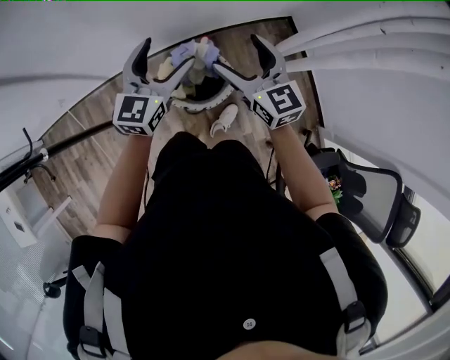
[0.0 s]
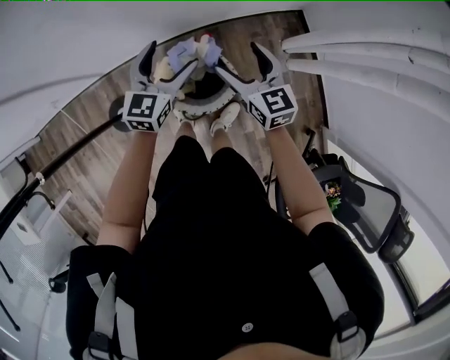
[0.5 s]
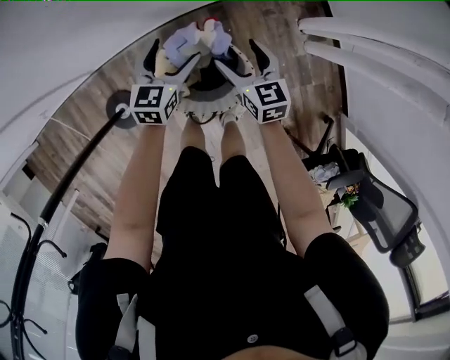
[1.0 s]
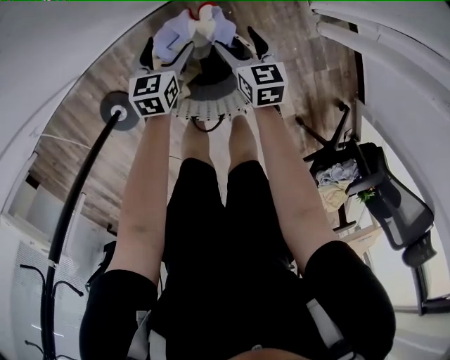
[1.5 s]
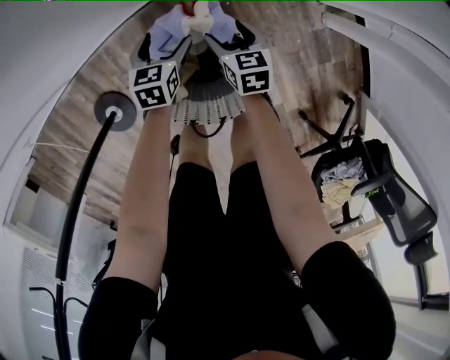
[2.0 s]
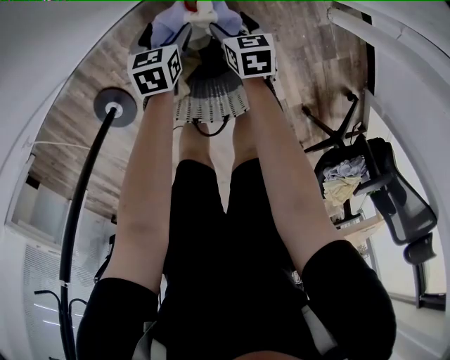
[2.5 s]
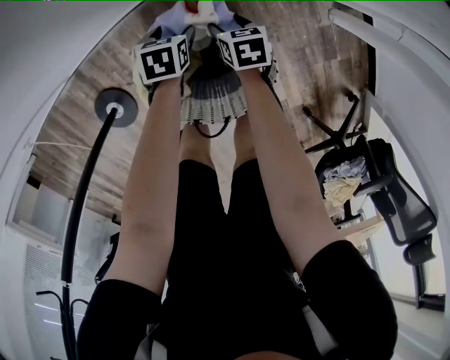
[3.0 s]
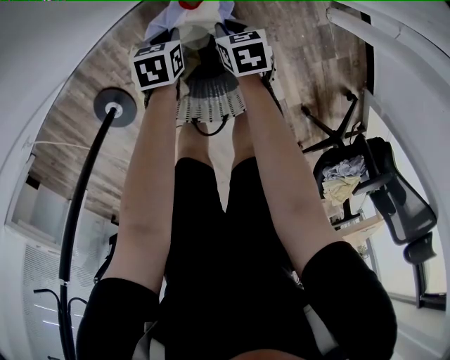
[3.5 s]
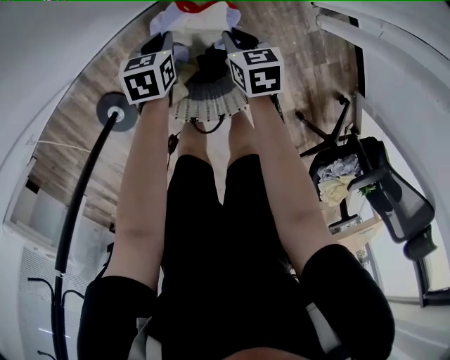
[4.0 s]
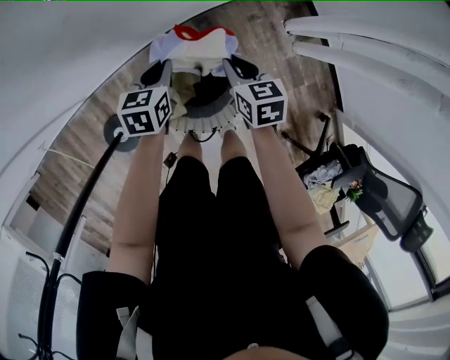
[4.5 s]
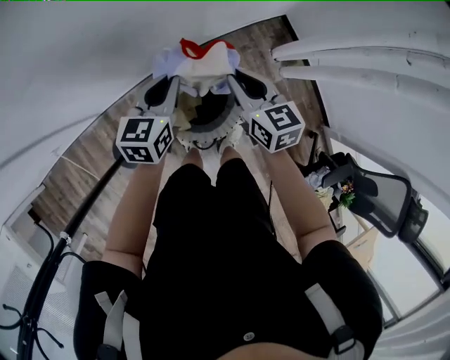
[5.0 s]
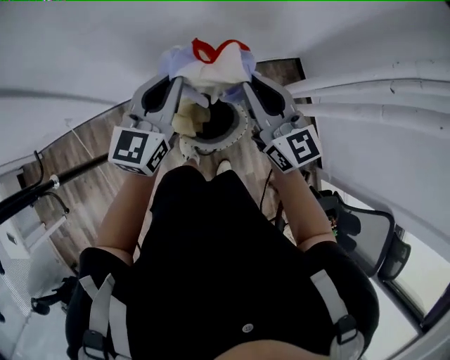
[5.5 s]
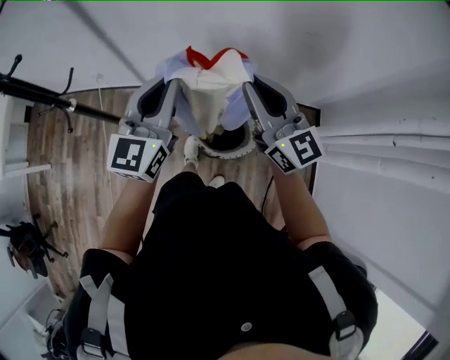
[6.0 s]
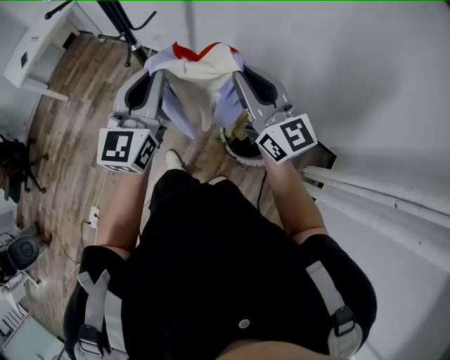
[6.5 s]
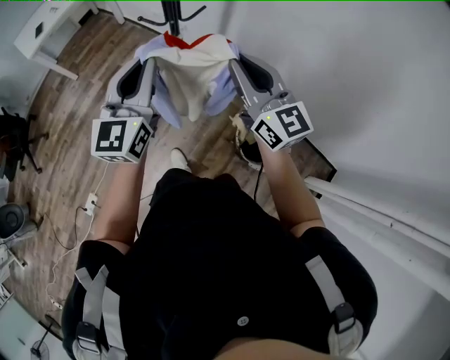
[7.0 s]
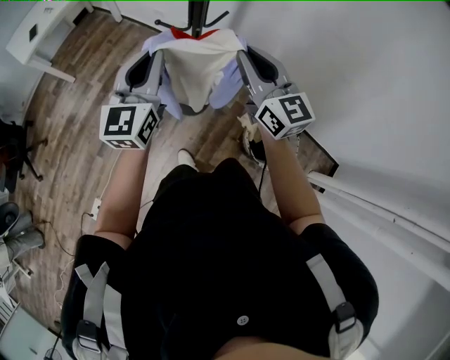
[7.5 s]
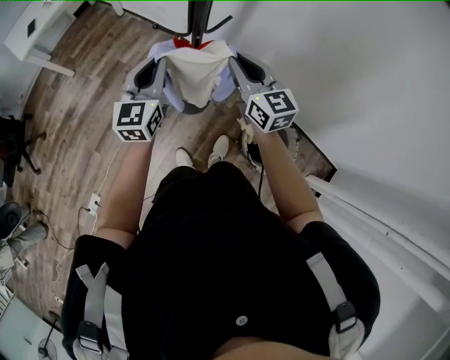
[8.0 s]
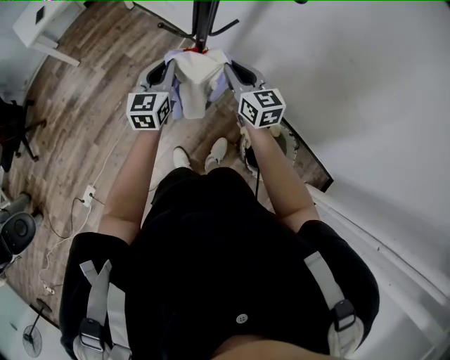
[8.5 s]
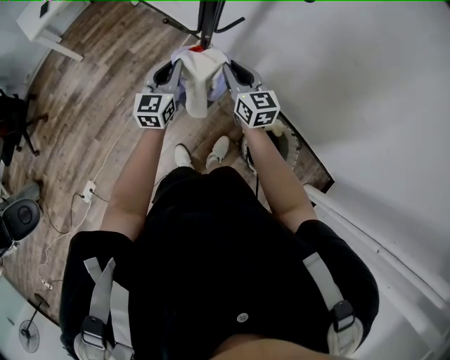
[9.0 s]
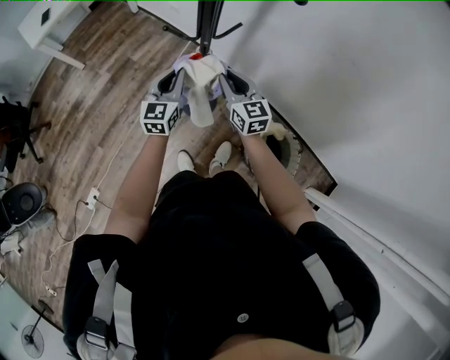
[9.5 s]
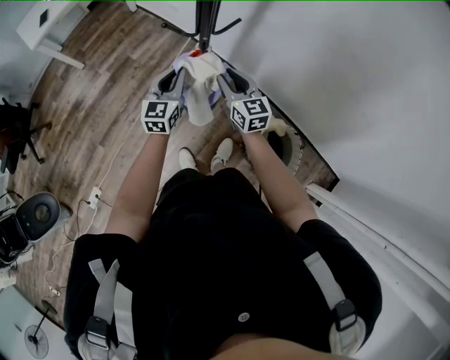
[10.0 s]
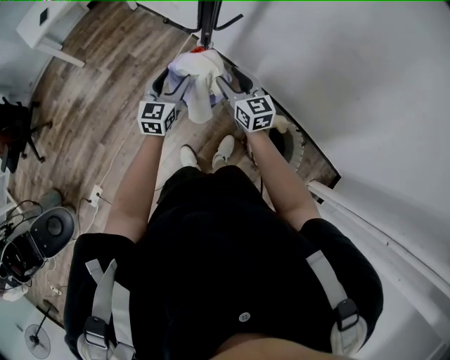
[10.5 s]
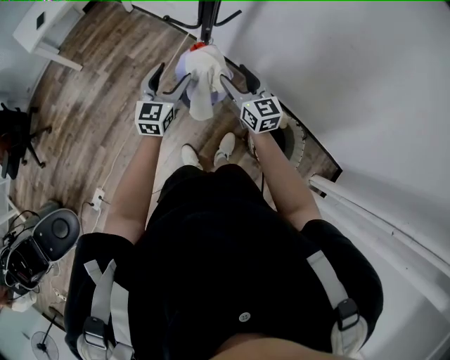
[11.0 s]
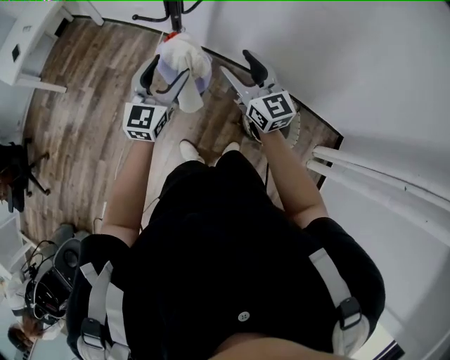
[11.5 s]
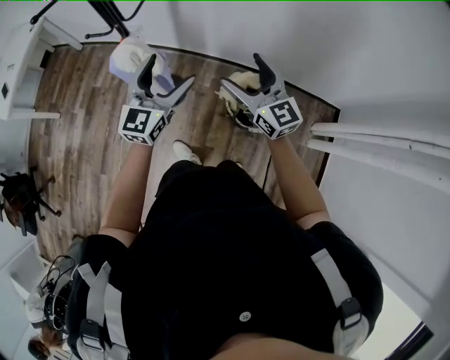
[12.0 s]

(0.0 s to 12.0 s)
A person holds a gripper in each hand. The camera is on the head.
0.0 s - 2.0 s: Both grippers move downward, some 60 cm. The left gripper points its fingers roughly 40 degrees further downward. Meanwhile the right gripper tips its fingers downward by some 40 degrees.
2.0 s - 4.0 s: The grippers both shift upward by approximately 5 cm. The left gripper closes its fingers. Meanwhile the right gripper closes up.
4.0 s - 6.0 s: Both grippers travel together upward, about 70 cm. The left gripper points its fingers roughly 60 degrees further upward. The right gripper tips its fingers upward by about 60 degrees.
6.0 s - 8.0 s: Both grippers are carried approximately 50 cm. The left gripper rotates approximately 40 degrees. The right gripper changes its angle by about 30 degrees.
8.0 s - 10.0 s: Both grippers travel together downward, some 10 cm.
10.0 s - 12.0 s: The left gripper is displaced to the right, backward and upward by about 30 cm, turns by some 30 degrees, and opens; the right gripper is displaced backward, to the right and upward by some 35 cm, changes its angle by approximately 20 degrees, and opens up.

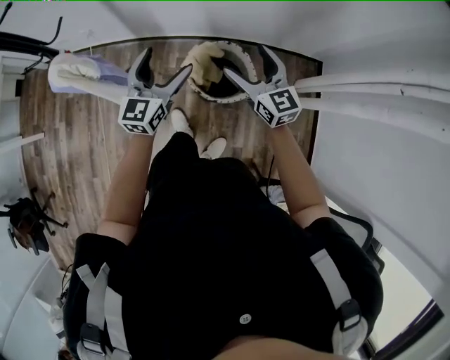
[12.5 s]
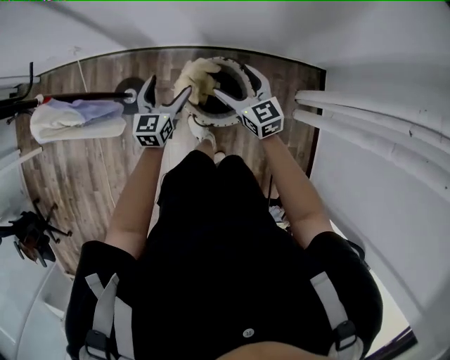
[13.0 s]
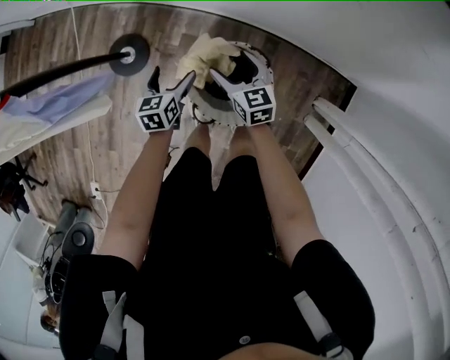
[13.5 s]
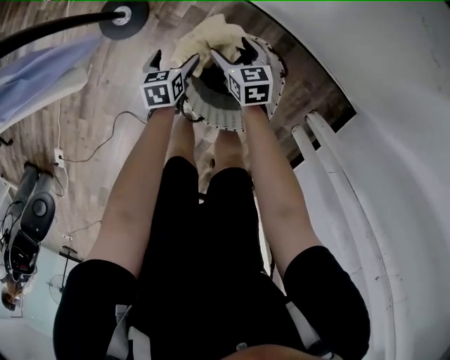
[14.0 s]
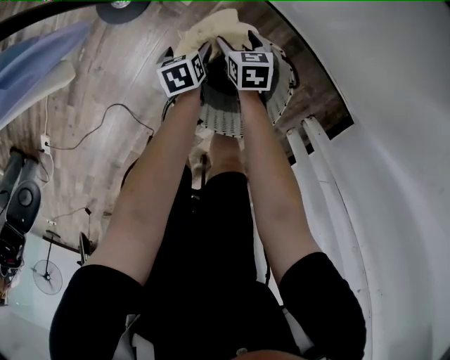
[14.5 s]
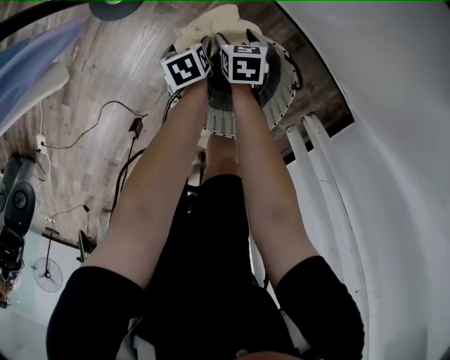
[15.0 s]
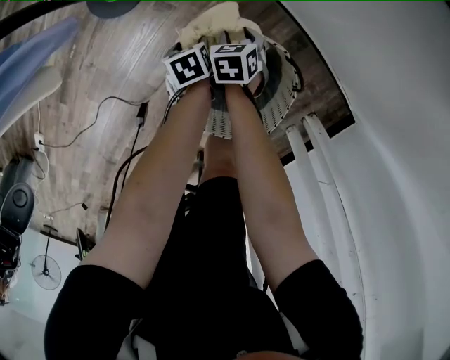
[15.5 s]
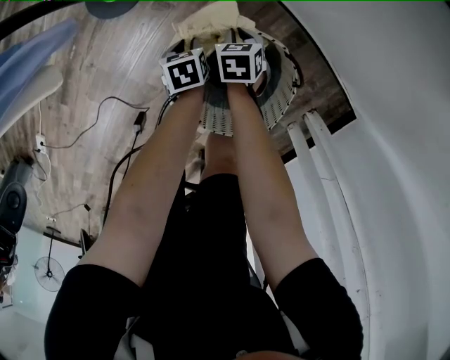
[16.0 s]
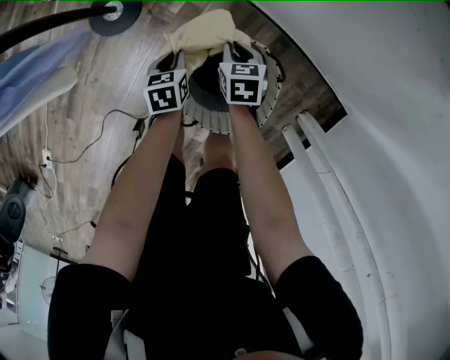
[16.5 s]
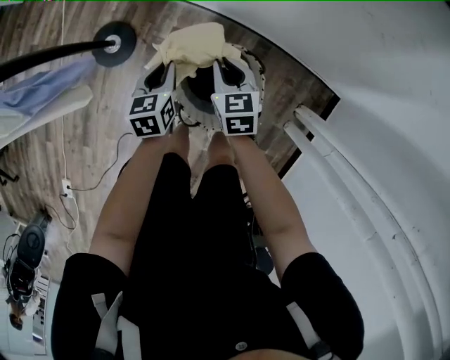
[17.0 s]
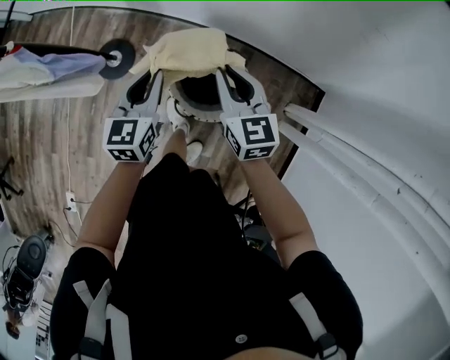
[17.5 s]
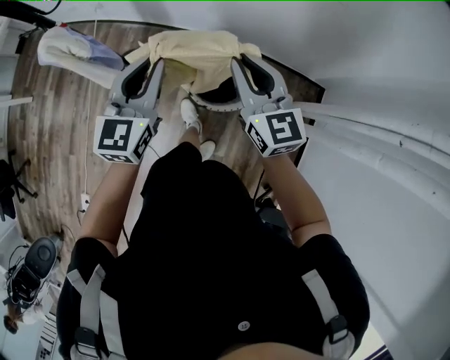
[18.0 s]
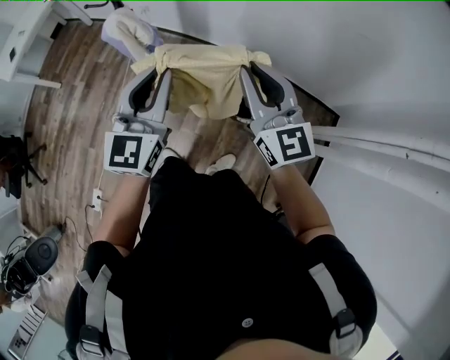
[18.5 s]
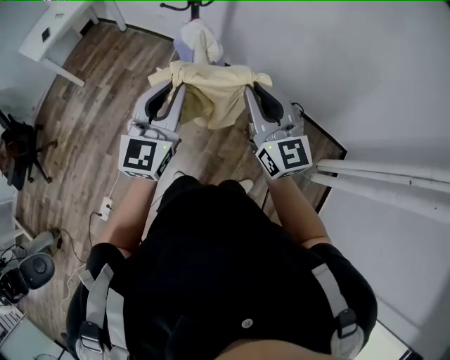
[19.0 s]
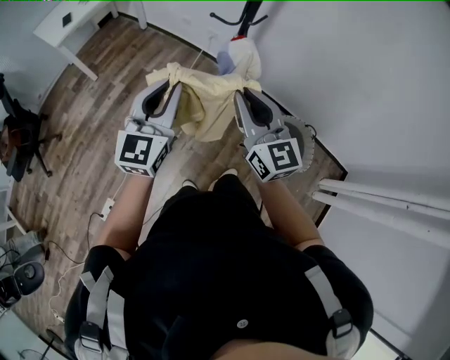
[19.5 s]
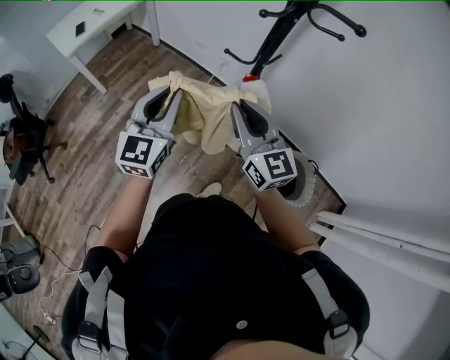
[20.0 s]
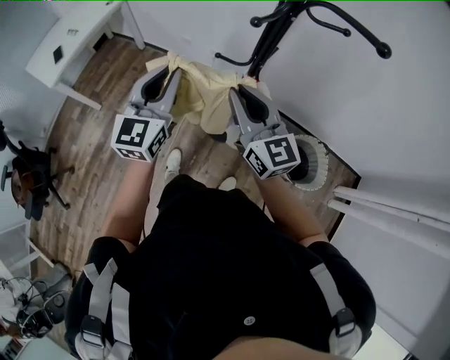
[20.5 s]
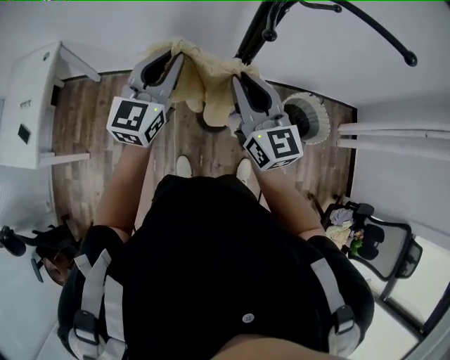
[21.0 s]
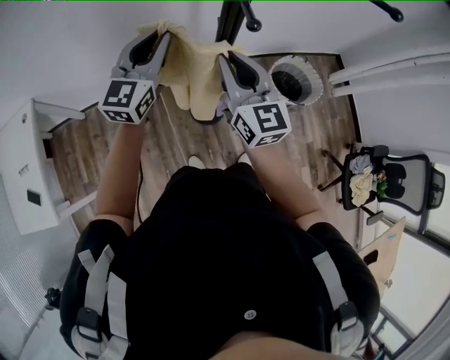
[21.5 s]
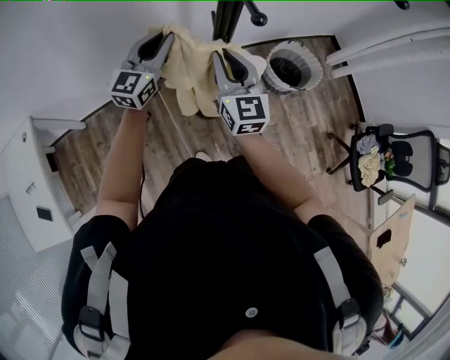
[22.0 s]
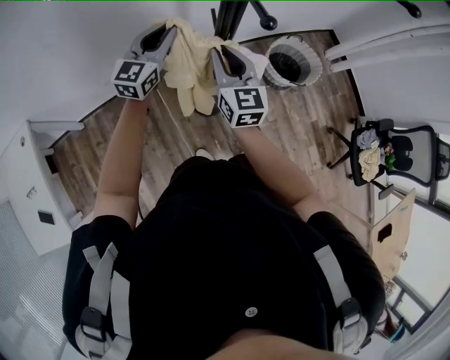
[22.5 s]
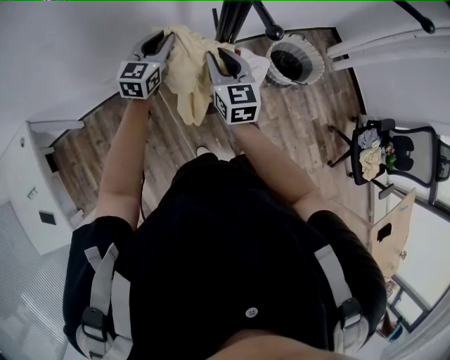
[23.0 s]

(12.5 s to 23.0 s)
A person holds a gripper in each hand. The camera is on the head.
12.5 s - 14.5 s: The grippers both shift downward by roughly 60 cm. The left gripper tilts its fingers some 60 degrees downward; the right gripper tips its fingers downward by some 50 degrees.
14.5 s - 16.5 s: The two grippers go some 5 cm upward. The left gripper closes its fingers. The right gripper closes.
16.5 s - 19.0 s: The pair of grippers is taken to the left and backward, roughly 50 cm. Both grippers travel together upward, about 70 cm. The right gripper points its fingers roughly 60 degrees further upward; the left gripper tilts its fingers some 60 degrees upward.
19.0 s - 21.0 s: The two grippers travel together, roughly 40 cm. The right gripper rotates some 30 degrees. The left gripper turns by some 30 degrees.
21.0 s - 23.0 s: The right gripper goes about 15 cm downward, and turns by some 30 degrees, while the left gripper ends up about 25 cm from where it was, and turns by approximately 30 degrees.

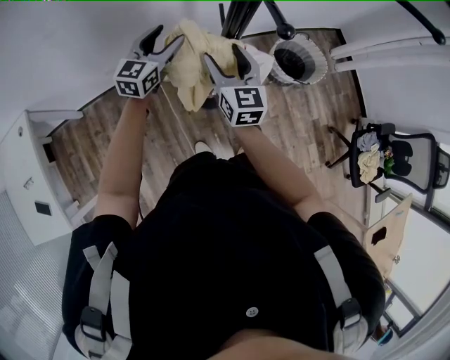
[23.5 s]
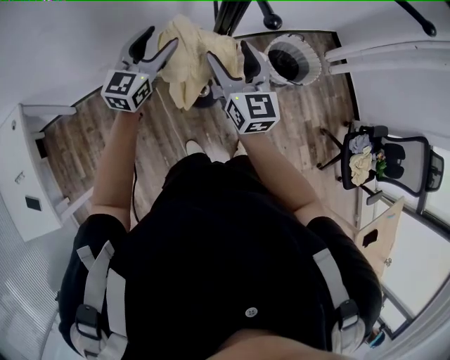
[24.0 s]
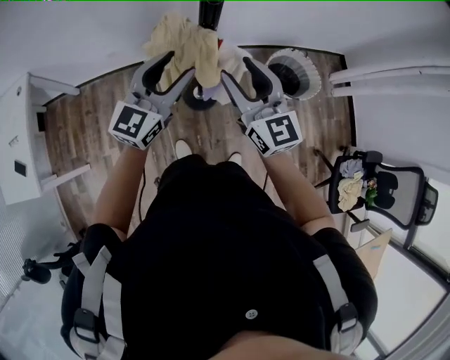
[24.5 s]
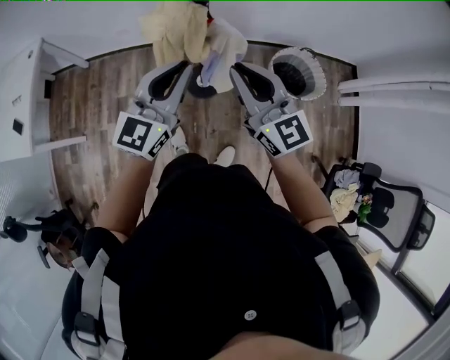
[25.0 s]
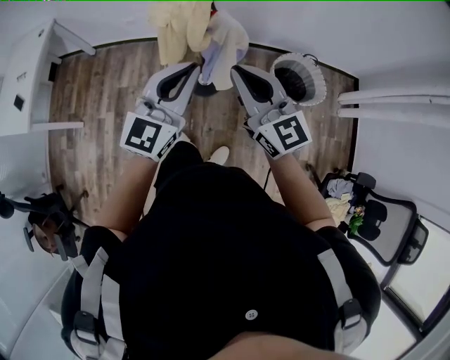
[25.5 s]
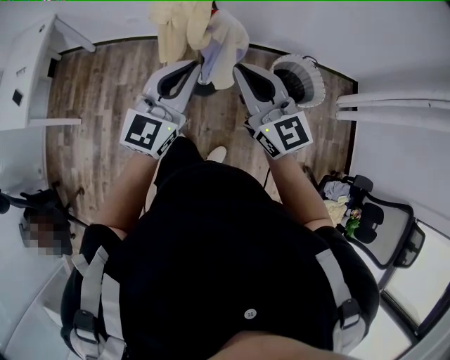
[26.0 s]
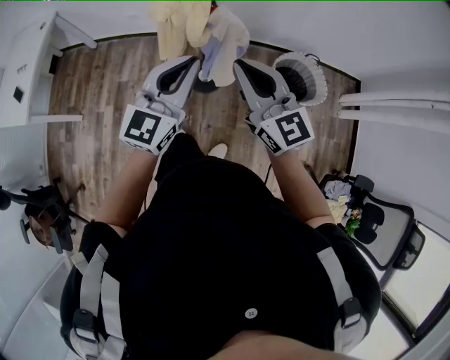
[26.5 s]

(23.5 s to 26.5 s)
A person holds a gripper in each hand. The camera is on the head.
23.5 s - 25.0 s: The right gripper shifts by approximately 30 cm, turns by roughly 40 degrees, and closes up; the left gripper changes place by roughly 35 cm, and closes.
25.0 s - 26.5 s: The left gripper travels backward by some 5 cm.

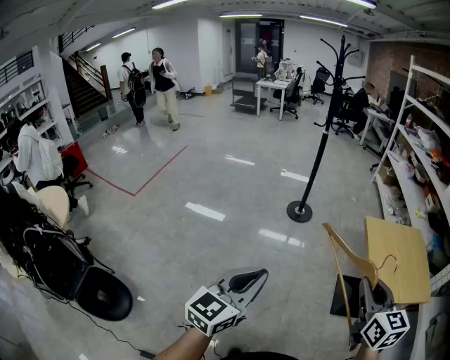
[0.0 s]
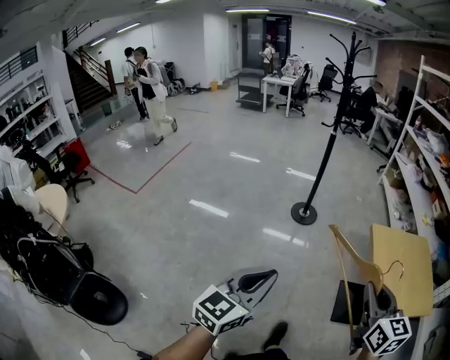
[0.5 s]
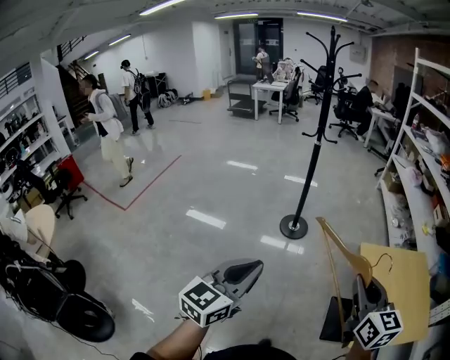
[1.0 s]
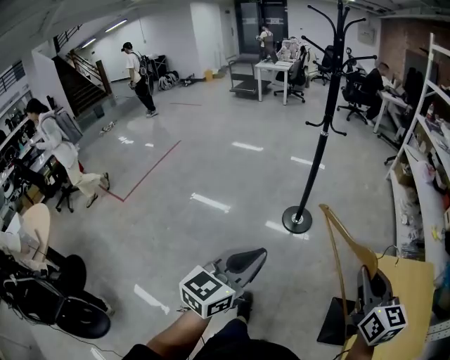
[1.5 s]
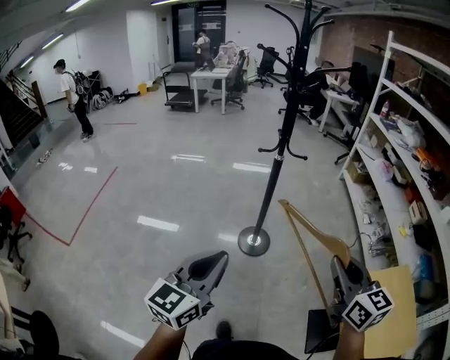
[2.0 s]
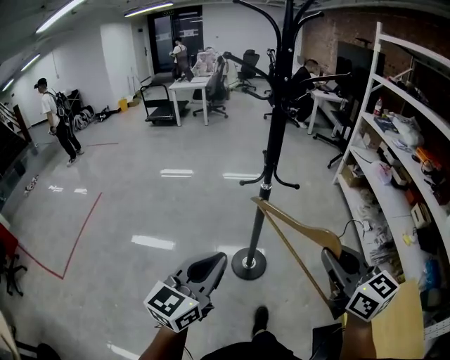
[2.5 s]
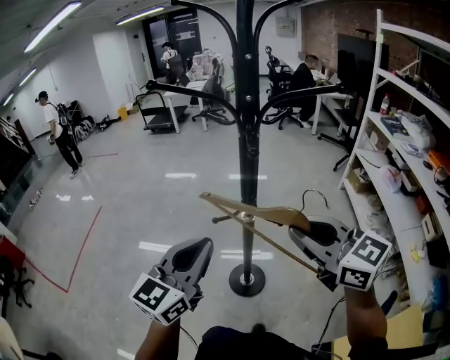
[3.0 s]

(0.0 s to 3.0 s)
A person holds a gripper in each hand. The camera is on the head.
0.0 s - 1.5 s: The two grippers go roughly 35 cm forward.
1.5 s - 3.0 s: The pair of grippers is taken forward, approximately 50 cm. The right gripper changes its angle by some 30 degrees.
